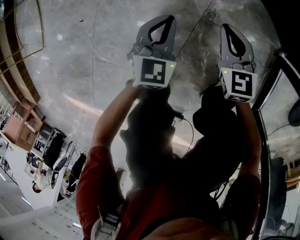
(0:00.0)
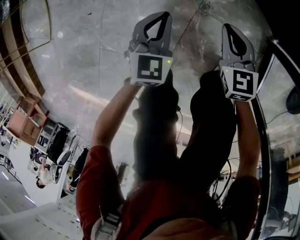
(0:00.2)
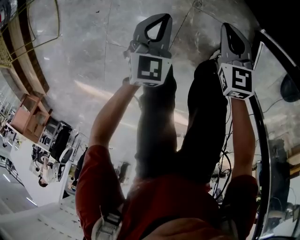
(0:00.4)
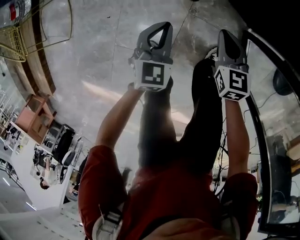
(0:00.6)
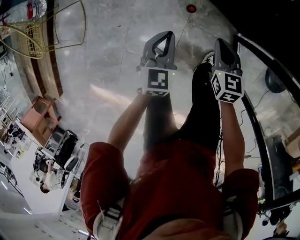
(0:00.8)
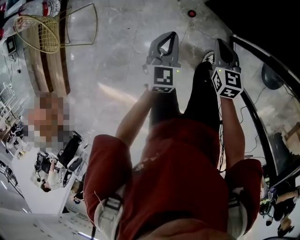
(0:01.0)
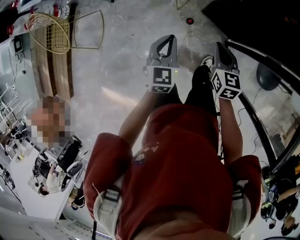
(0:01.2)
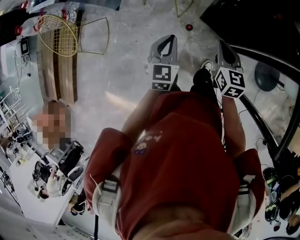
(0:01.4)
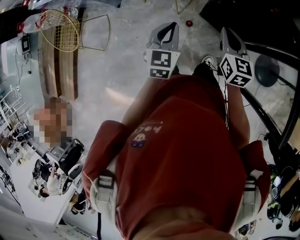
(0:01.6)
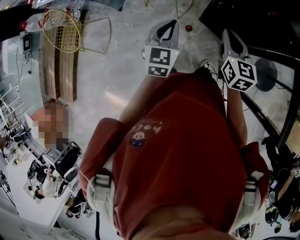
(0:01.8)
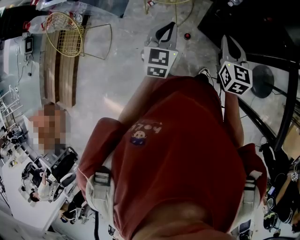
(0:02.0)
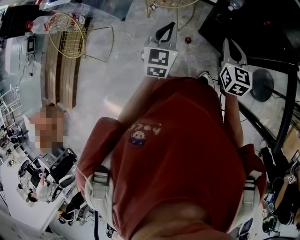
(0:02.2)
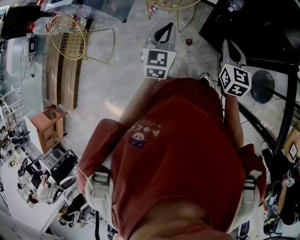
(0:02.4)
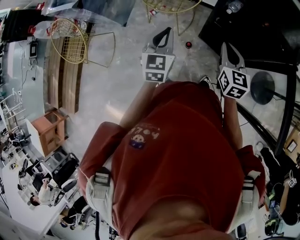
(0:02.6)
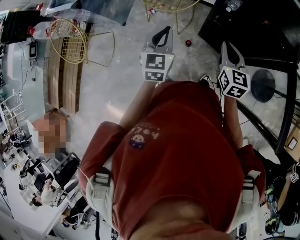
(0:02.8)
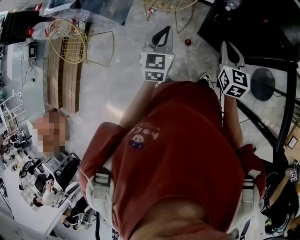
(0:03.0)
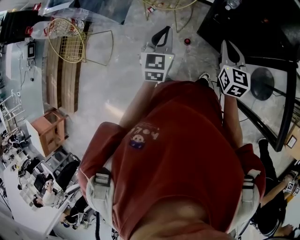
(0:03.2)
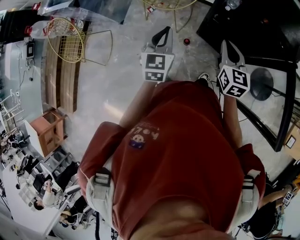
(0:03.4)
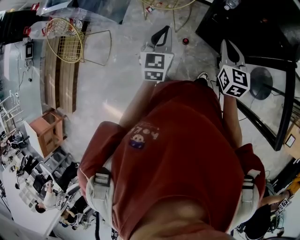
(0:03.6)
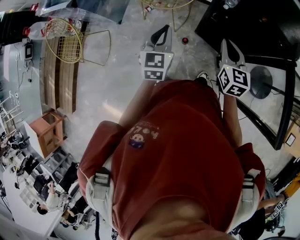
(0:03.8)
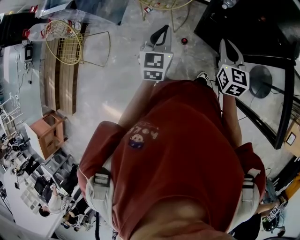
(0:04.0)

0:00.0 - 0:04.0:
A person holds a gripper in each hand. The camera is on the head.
0:00.0 - 0:01.4: The two grippers go some 70 cm upward. The right gripper changes its angle by roughly 20 degrees.
0:01.4 - 0:02.6: The two grippers go roughly 10 cm upward.
0:02.6 - 0:04.0: Both grippers stay put.

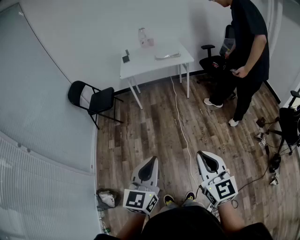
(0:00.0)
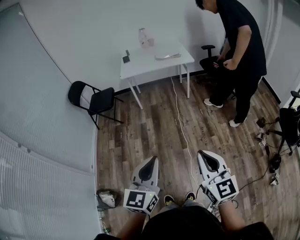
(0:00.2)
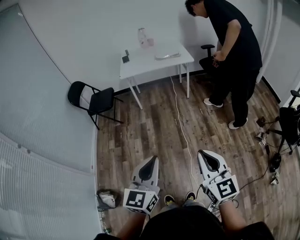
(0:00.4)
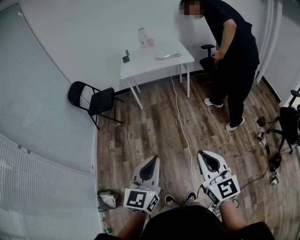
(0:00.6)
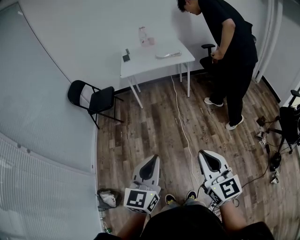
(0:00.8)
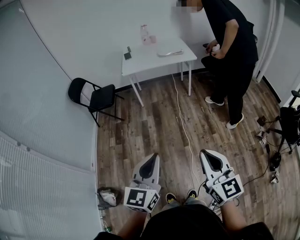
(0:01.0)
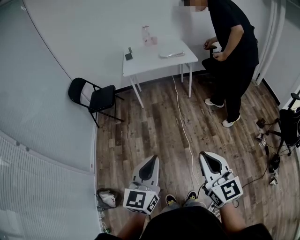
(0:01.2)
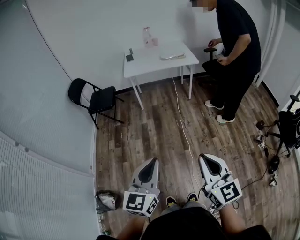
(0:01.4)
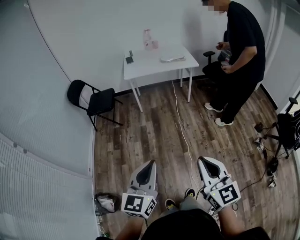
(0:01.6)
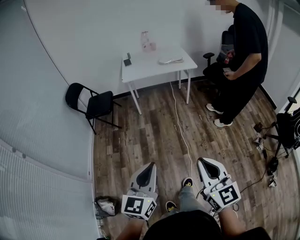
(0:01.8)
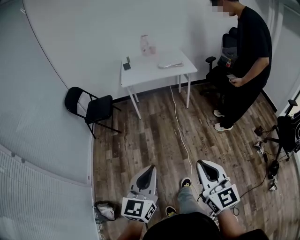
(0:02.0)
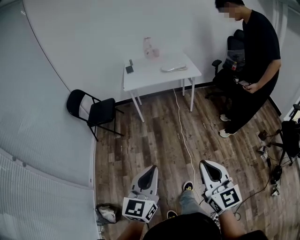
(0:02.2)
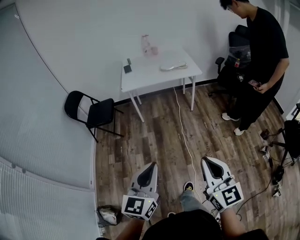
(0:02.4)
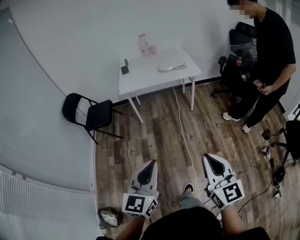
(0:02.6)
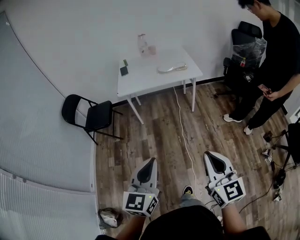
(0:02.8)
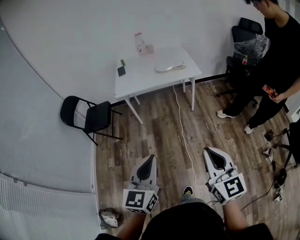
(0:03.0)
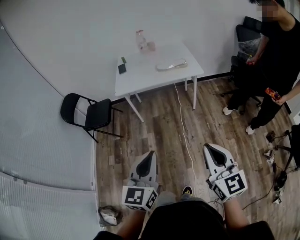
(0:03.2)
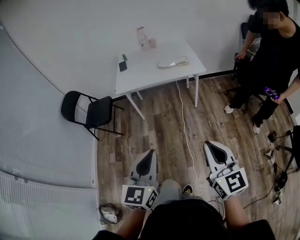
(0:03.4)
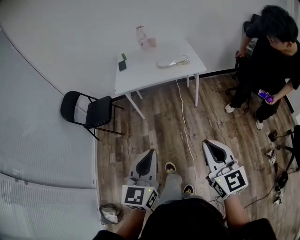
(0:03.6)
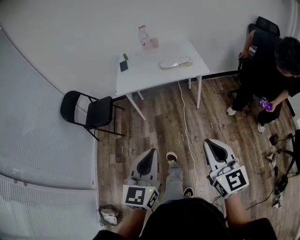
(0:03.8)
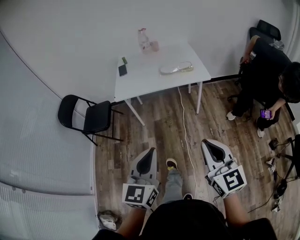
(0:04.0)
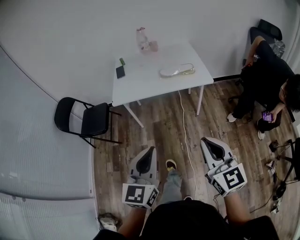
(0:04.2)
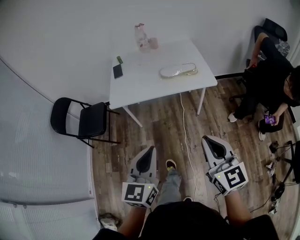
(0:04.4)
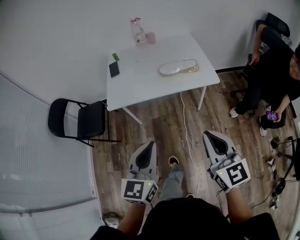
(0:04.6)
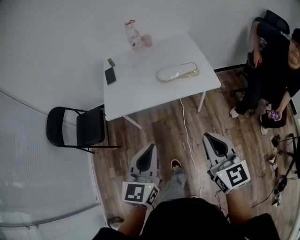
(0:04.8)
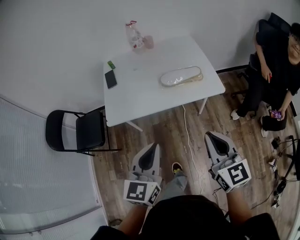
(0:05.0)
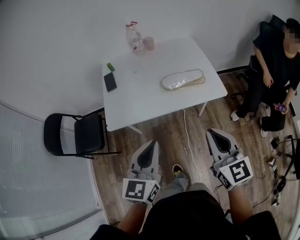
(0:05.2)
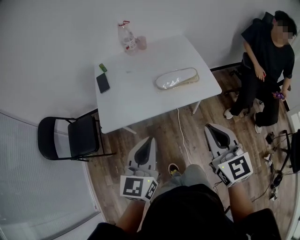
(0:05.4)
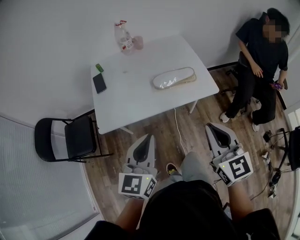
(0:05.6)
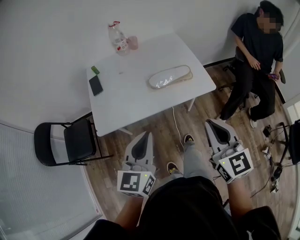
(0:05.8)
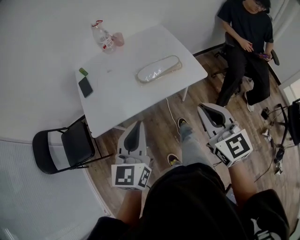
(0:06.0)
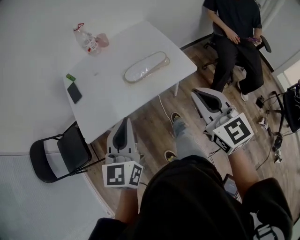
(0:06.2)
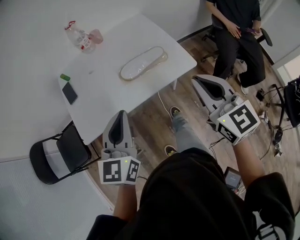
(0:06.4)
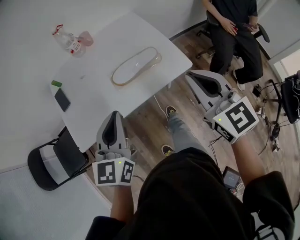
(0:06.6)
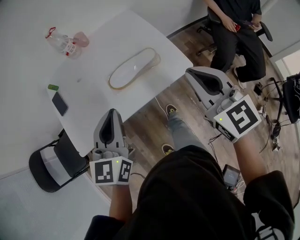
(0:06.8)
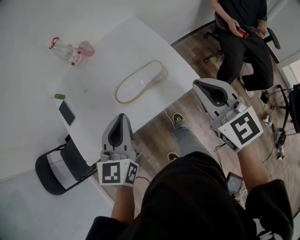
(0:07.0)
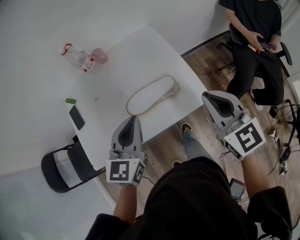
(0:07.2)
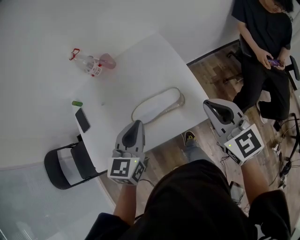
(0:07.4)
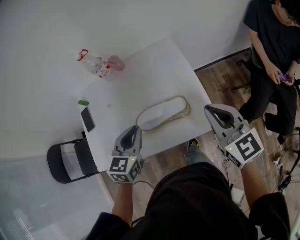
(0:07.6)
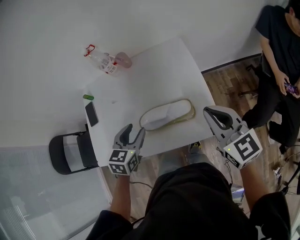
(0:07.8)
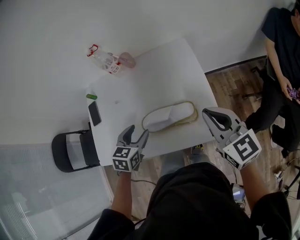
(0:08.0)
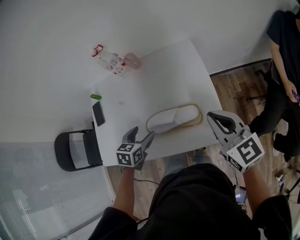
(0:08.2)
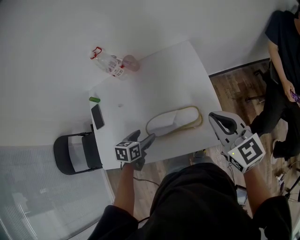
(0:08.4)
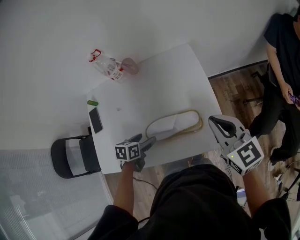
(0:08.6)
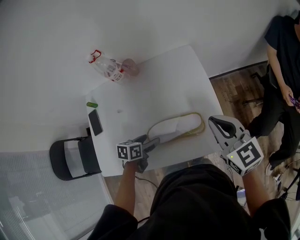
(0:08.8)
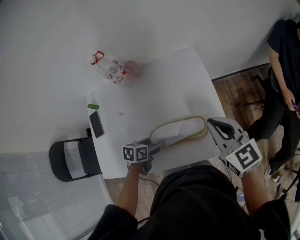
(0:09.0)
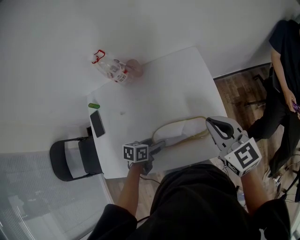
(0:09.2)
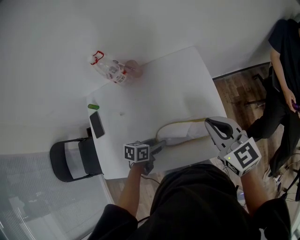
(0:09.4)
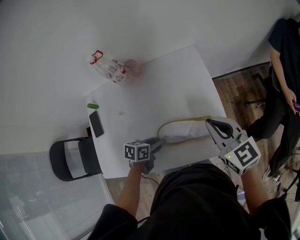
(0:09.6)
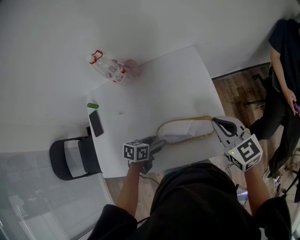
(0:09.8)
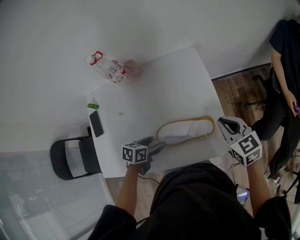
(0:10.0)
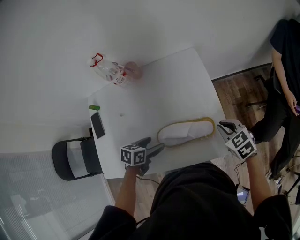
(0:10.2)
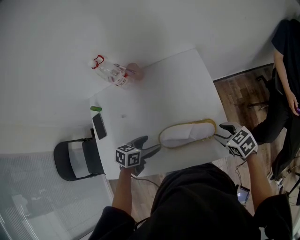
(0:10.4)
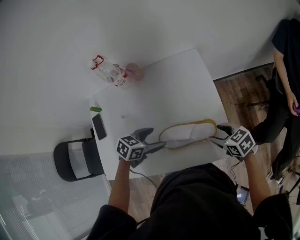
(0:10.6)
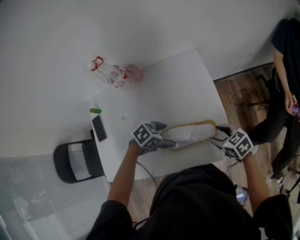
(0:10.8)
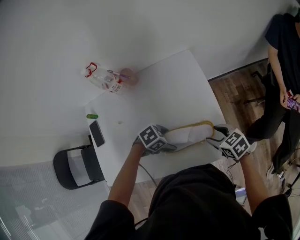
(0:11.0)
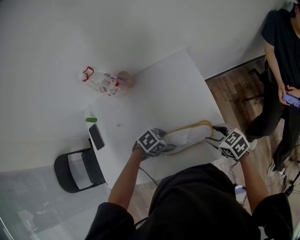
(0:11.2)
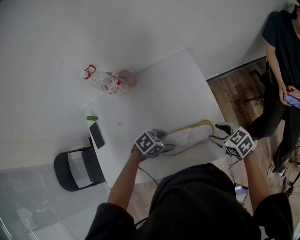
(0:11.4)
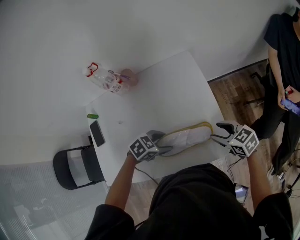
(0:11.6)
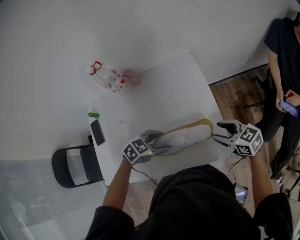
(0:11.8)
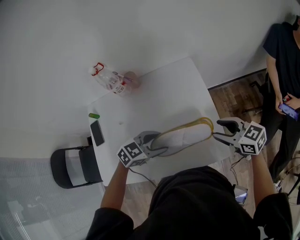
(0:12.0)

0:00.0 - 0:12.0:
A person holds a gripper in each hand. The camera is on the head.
0:00.0 - 0:01.6: Both grippers travel together to the left, approximately 10 cm.
0:01.6 - 0:03.0: Both grippers move forward, some 30 cm.
0:03.0 - 0:04.4: The grippers both shift forward by about 30 cm.
0:04.4 - 0:06.0: Both grippers travel together forward, about 25 cm.
0:06.0 - 0:07.6: The left gripper heads forward, covering approximately 30 cm, and turns by about 30 degrees. Meanwhile the right gripper shifts some 35 cm forward and to the right.
0:07.6 - 0:09.0: The left gripper moves downward, roughly 20 cm, turns by some 40 degrees, and opens its fingers, while the right gripper is displaced forward and to the left by roughly 10 cm.
0:09.0 - 0:10.4: The left gripper closes and opens again; the right gripper heads downward, covering approximately 20 cm, points its fingers approximately 30 degrees further downward, and opens up.
0:10.4 - 0:12.0: The right gripper shifts about 10 cm upward, and turns by some 20 degrees. Meanwhile the left gripper changes place by about 10 cm, and changes its angle by approximately 40 degrees.

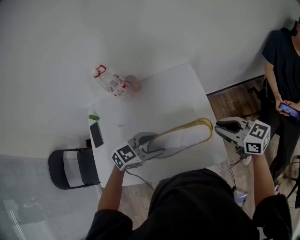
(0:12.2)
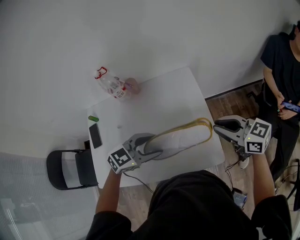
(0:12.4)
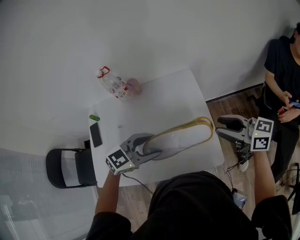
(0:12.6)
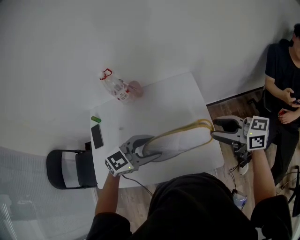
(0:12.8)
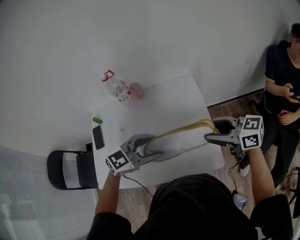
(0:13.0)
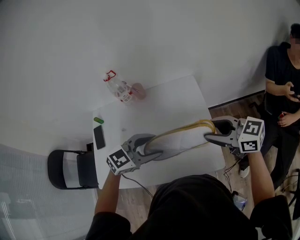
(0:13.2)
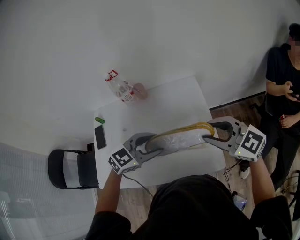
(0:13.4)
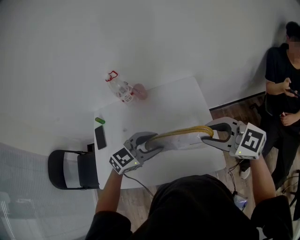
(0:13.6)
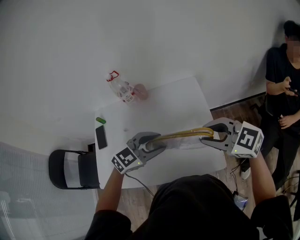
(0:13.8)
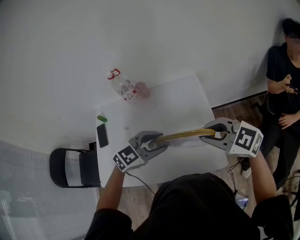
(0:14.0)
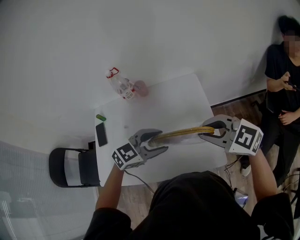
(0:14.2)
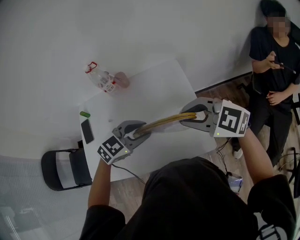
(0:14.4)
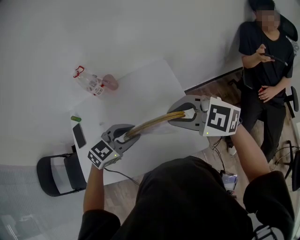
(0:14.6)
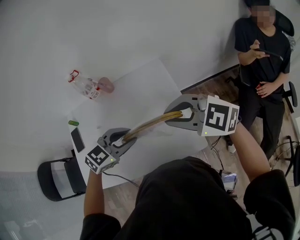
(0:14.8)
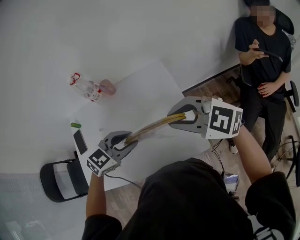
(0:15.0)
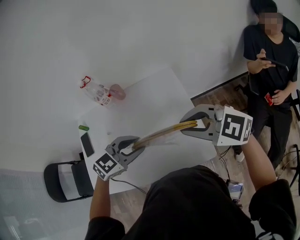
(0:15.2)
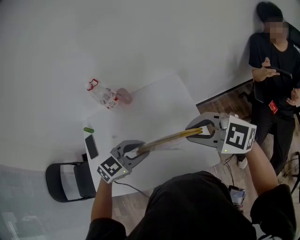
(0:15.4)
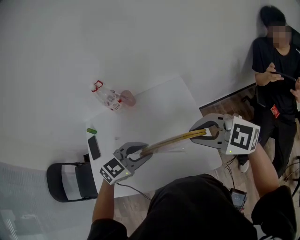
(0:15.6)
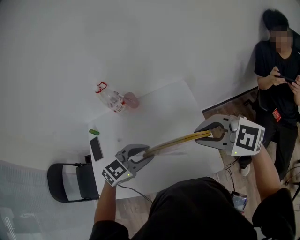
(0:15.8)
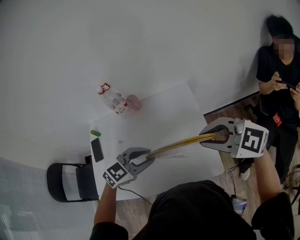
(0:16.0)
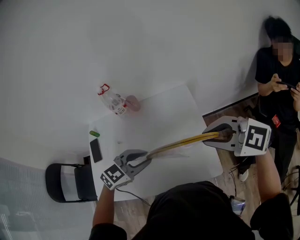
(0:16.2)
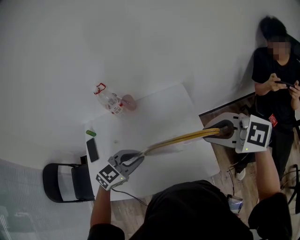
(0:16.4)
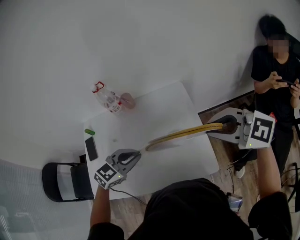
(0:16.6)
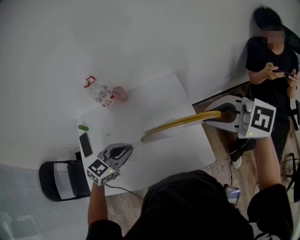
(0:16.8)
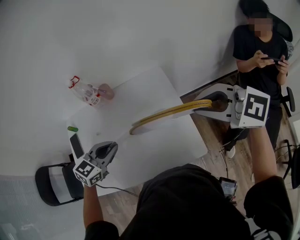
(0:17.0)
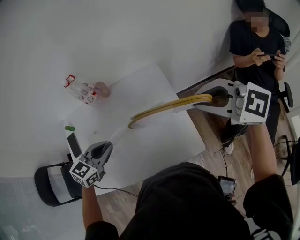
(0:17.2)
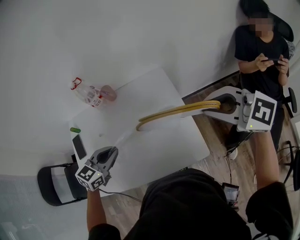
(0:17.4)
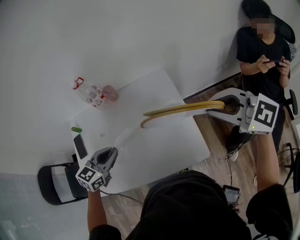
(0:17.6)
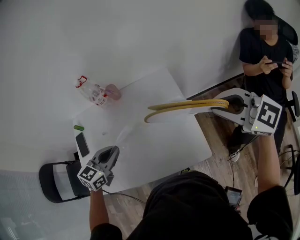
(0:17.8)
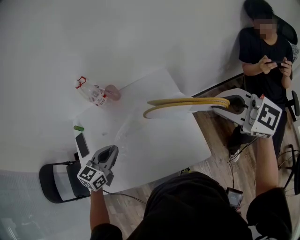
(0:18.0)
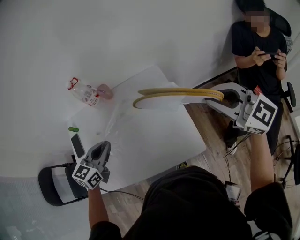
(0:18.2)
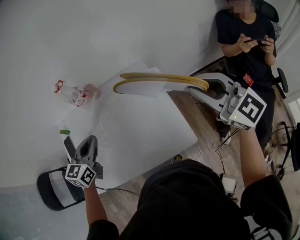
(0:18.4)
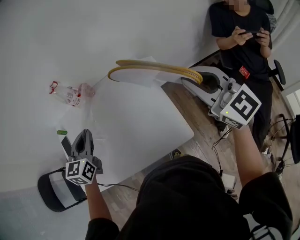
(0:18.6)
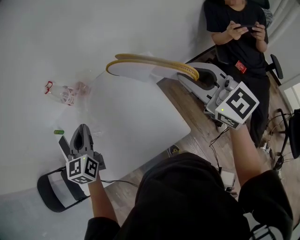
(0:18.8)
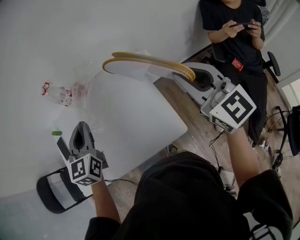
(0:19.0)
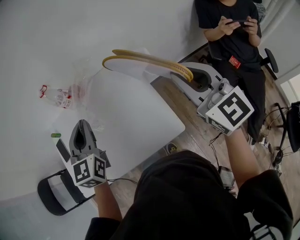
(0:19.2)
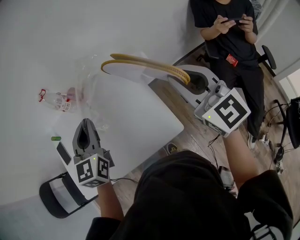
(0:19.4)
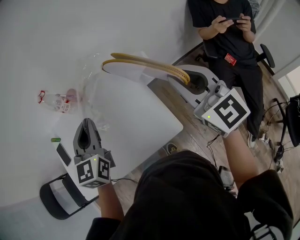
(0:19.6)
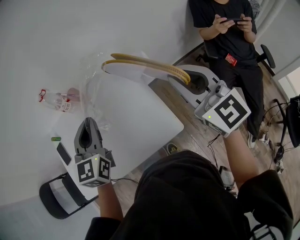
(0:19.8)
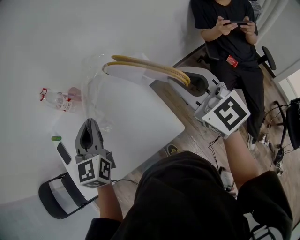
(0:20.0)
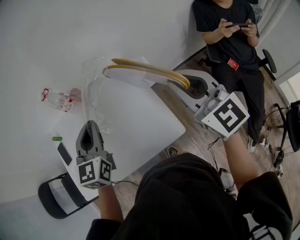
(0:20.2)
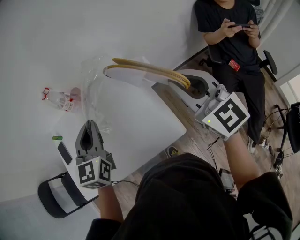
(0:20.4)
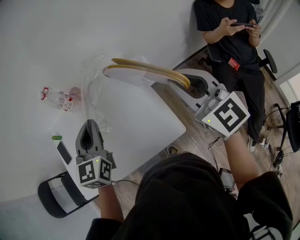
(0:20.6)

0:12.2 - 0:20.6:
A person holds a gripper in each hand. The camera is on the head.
0:12.2 - 0:13.6: The two grippers go roughly 10 cm upward. The right gripper turns by roughly 30 degrees, and opens, then closes again.
0:13.6 - 0:15.0: There are only small adjustments of the grippers.
0:15.0 - 0:16.4: The left gripper shifts by about 5 cm, while the right gripper moves some 5 cm.
0:16.4 - 0:17.8: The left gripper rotates roughly 20 degrees; the right gripper shifts by about 10 cm.
0:17.8 - 0:19.2: The left gripper is displaced to the right and upward by about 15 cm, and swivels some 30 degrees; the right gripper ends up approximately 5 cm from where it was, and rotates some 40 degrees.
0:19.2 - 0:20.6: There are only small adjustments of the grippers.
